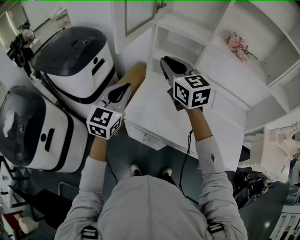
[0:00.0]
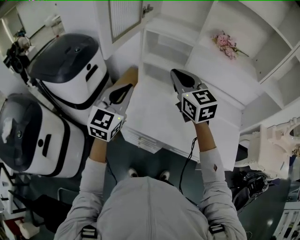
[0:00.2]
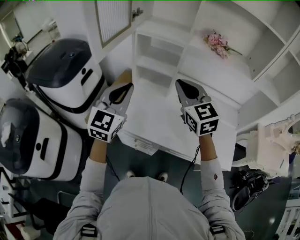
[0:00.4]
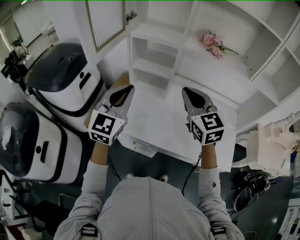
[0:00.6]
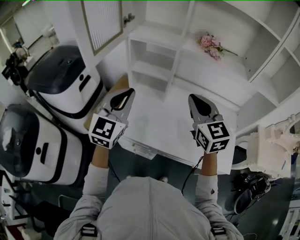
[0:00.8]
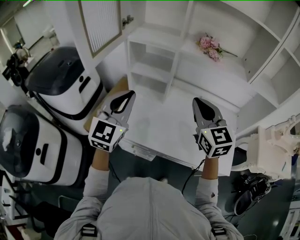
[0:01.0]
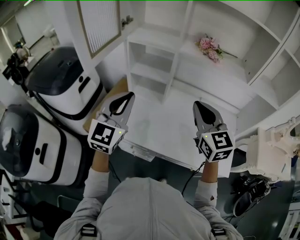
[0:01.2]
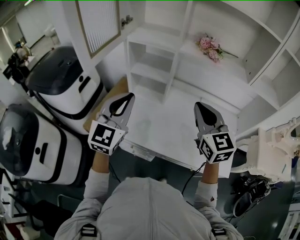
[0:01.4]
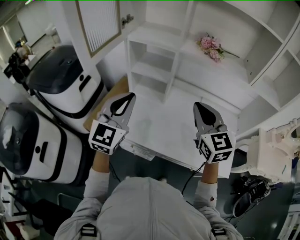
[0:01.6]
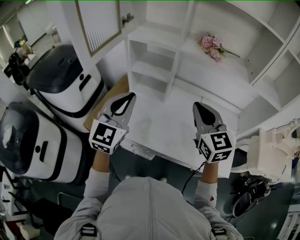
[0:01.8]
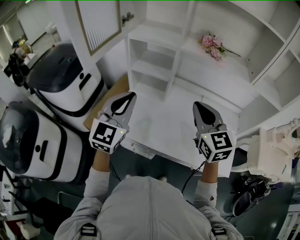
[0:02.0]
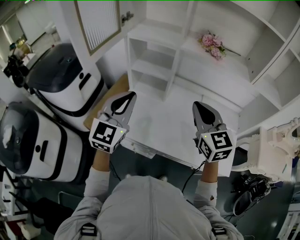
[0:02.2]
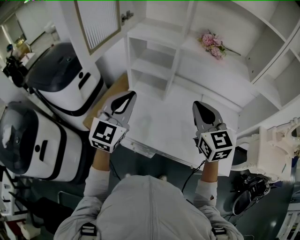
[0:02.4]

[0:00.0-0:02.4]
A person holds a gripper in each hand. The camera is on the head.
0:00.0 to 0:01.2: The left gripper shifts approximately 15 cm to the right and upward. The right gripper is displaced to the right by roughly 25 cm.
0:01.2 to 0:02.4: There are only small adjustments of the grippers.

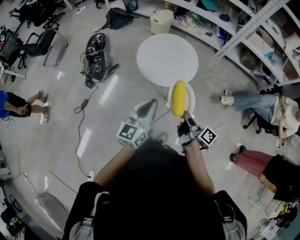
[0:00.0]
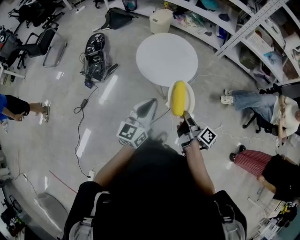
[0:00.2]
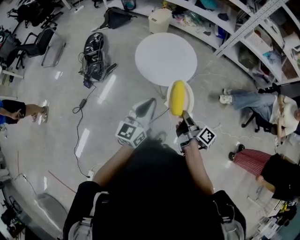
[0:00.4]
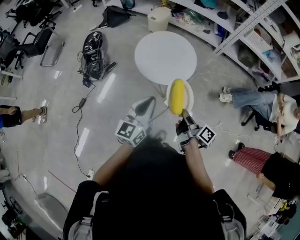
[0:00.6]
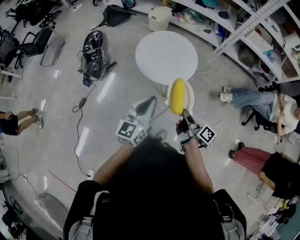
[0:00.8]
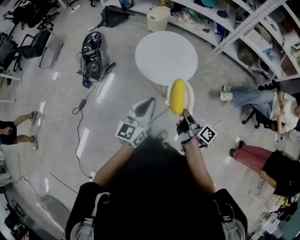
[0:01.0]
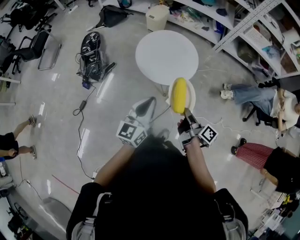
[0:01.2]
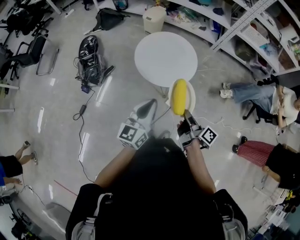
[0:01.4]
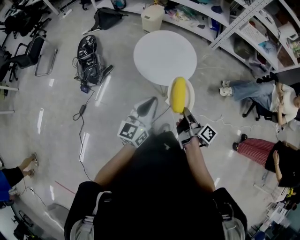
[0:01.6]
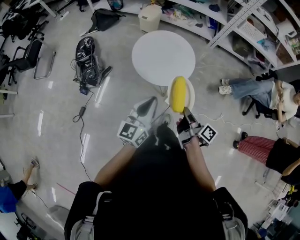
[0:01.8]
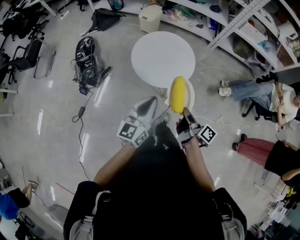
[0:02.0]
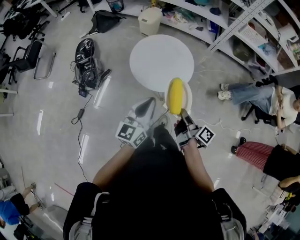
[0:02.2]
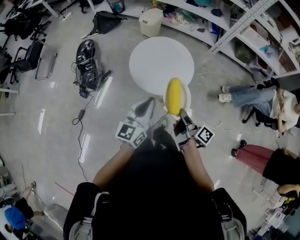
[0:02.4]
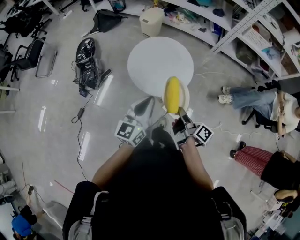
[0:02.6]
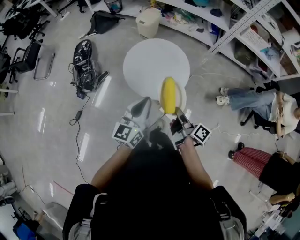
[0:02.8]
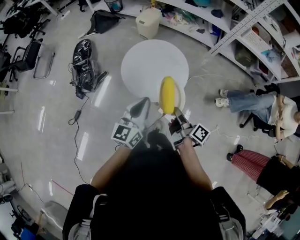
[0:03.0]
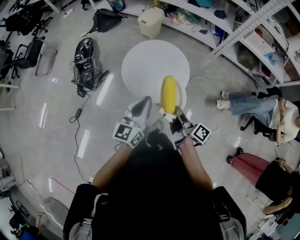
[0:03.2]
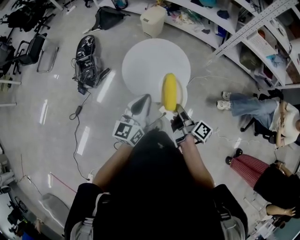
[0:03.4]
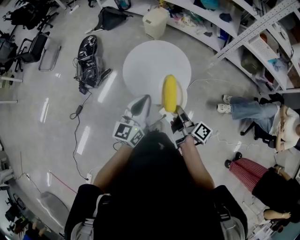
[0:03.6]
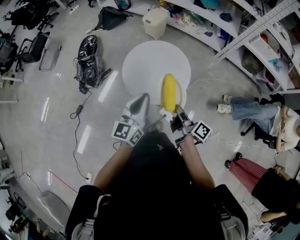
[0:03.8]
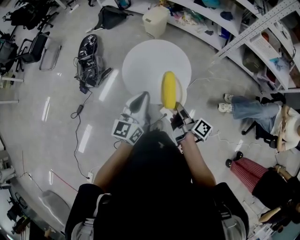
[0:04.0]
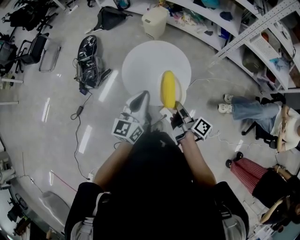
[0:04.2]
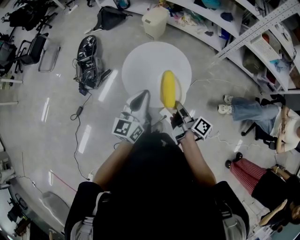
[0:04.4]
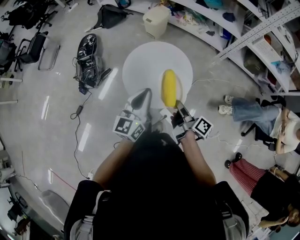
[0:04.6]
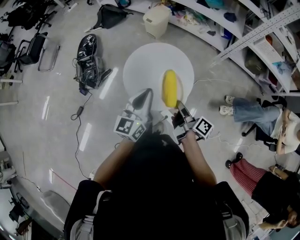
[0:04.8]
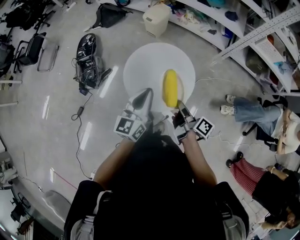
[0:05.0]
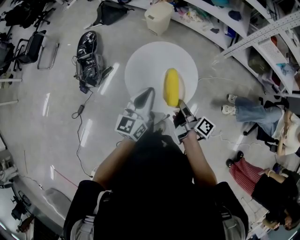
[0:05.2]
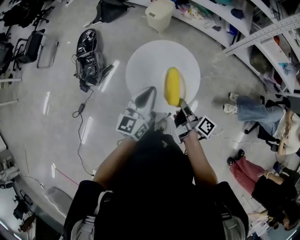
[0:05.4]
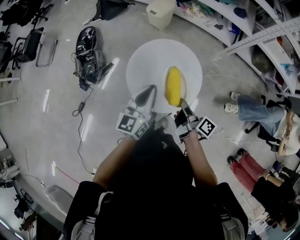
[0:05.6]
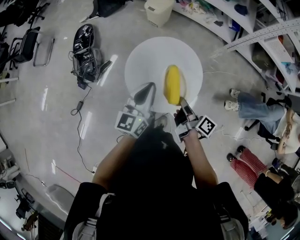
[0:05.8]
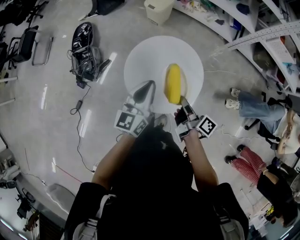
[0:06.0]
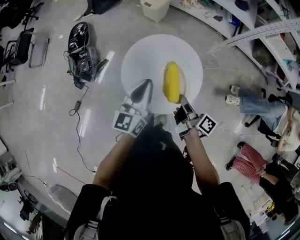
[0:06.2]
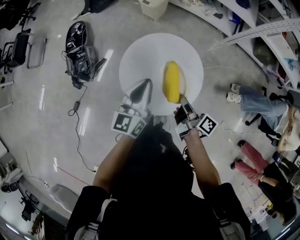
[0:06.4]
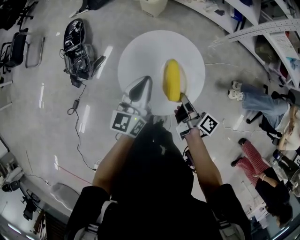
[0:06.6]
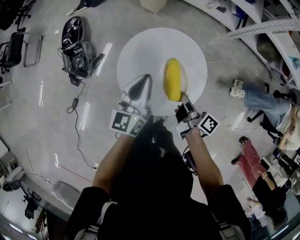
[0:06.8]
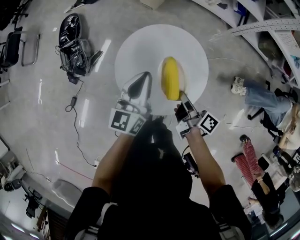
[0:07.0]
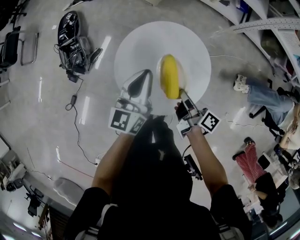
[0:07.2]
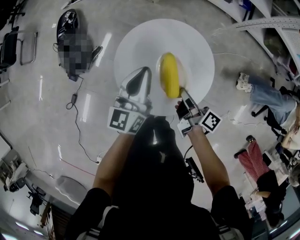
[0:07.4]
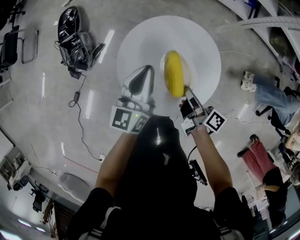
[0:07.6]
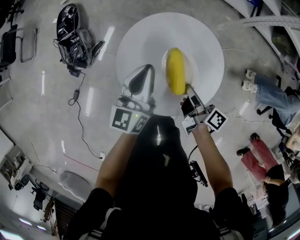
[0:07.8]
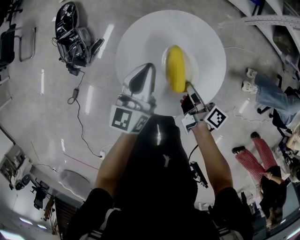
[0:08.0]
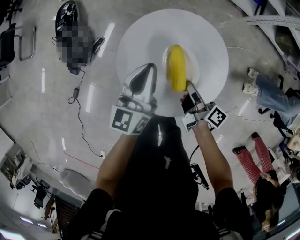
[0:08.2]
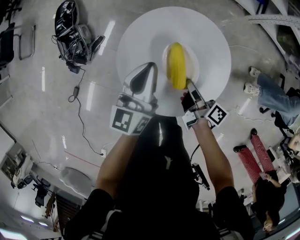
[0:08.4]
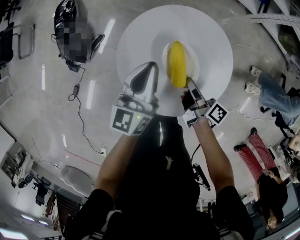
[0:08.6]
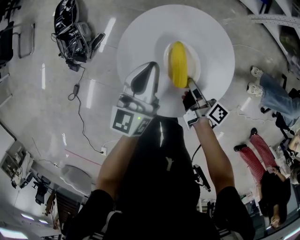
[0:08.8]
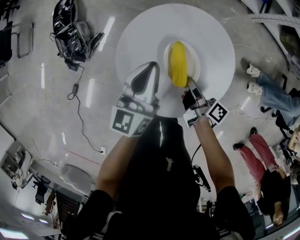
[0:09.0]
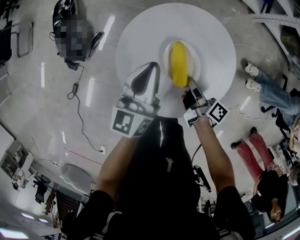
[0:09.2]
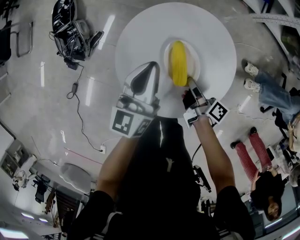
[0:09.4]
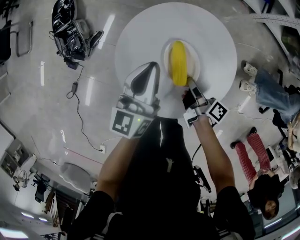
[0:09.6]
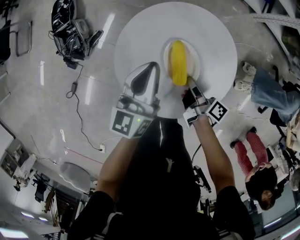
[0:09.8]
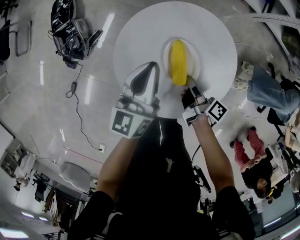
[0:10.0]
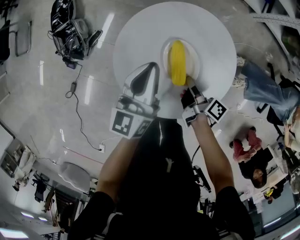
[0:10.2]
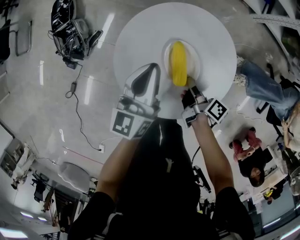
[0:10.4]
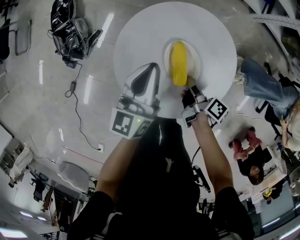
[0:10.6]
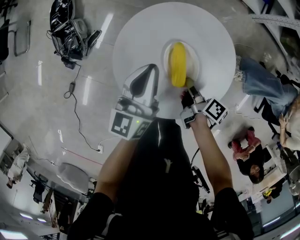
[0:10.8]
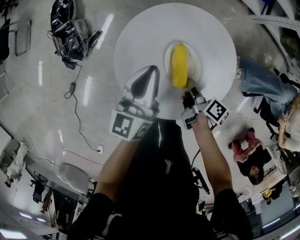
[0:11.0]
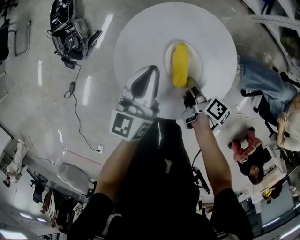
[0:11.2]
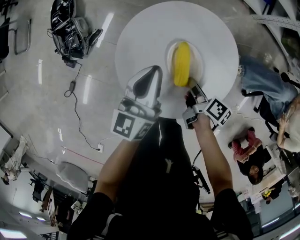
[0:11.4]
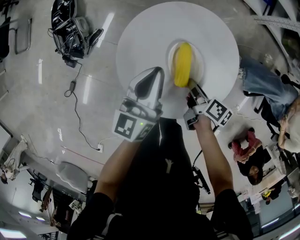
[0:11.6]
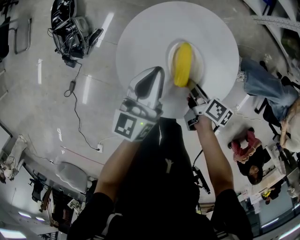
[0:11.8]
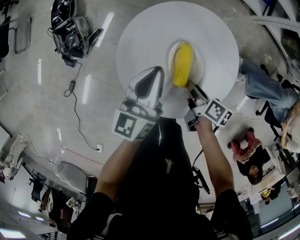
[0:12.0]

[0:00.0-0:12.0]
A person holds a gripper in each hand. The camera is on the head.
0:00.0 to 0:01.6: The left gripper shifts by roughly 5 cm.
0:01.6 to 0:03.0: The left gripper ends up approximately 15 cm from where it was.
0:03.0 to 0:04.4: The left gripper ends up some 10 cm from where it was.
0:04.4 to 0:06.0: The left gripper shifts by approximately 15 cm.
0:06.0 to 0:07.6: The left gripper is displaced downward by approximately 10 cm.

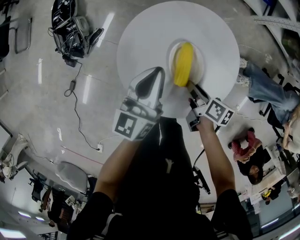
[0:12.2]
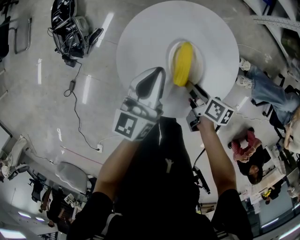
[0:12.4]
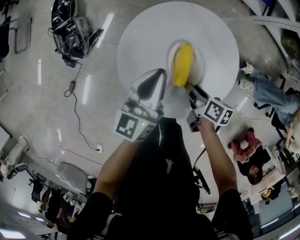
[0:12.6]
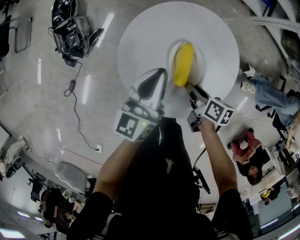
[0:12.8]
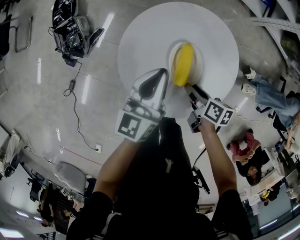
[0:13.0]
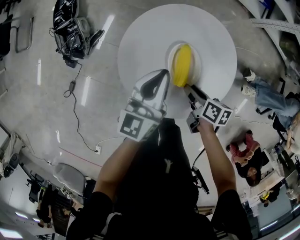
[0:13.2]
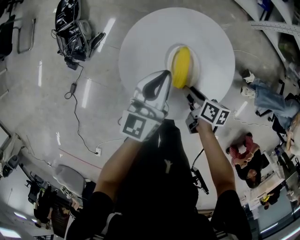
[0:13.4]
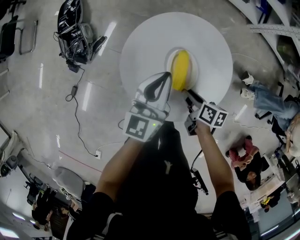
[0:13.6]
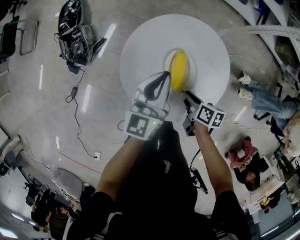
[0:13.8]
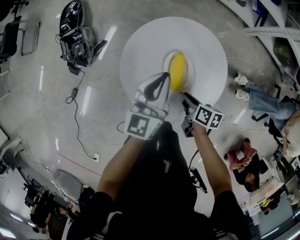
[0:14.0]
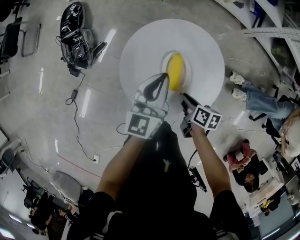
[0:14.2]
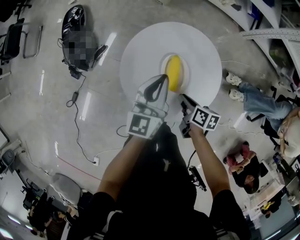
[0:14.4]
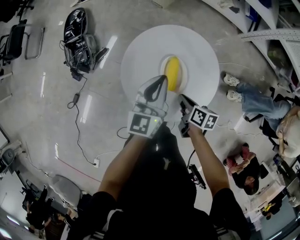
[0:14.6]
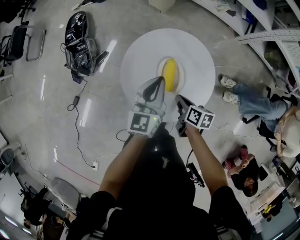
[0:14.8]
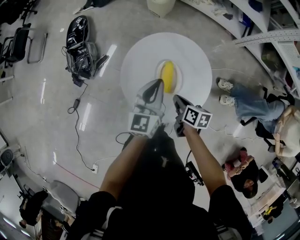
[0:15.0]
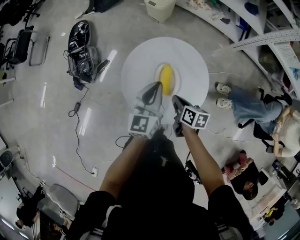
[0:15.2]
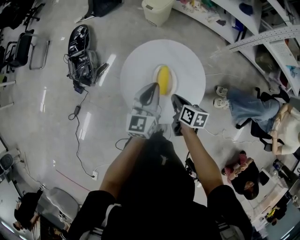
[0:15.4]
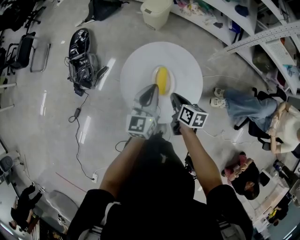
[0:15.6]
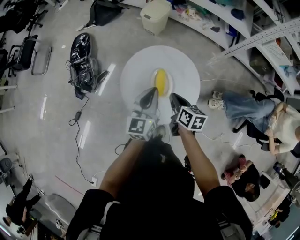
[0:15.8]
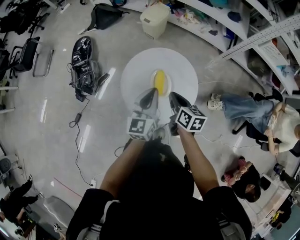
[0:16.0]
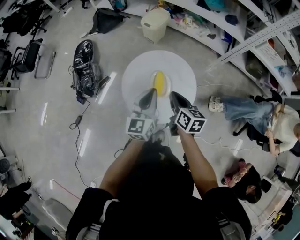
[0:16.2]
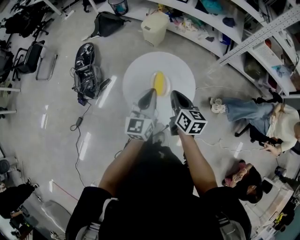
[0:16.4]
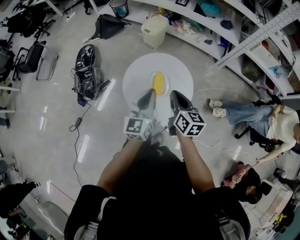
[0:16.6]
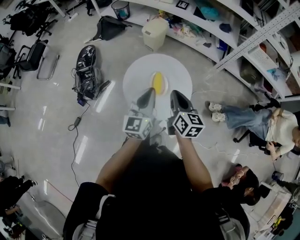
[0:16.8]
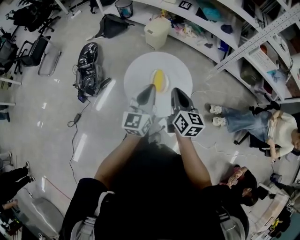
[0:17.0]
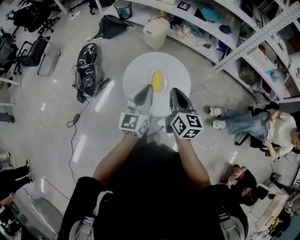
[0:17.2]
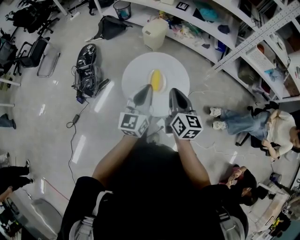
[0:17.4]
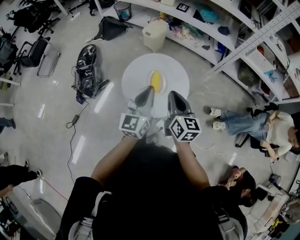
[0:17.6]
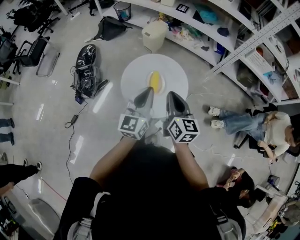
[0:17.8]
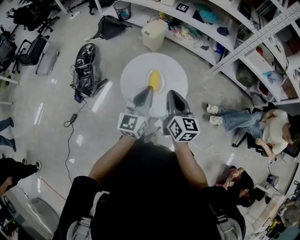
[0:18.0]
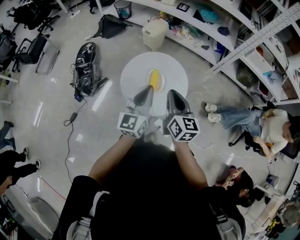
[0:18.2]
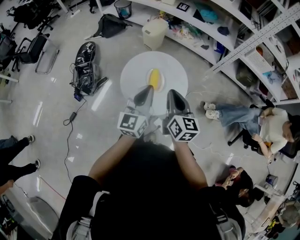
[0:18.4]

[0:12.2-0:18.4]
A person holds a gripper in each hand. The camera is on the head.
0:13.8 to 0:15.4: The left gripper moves upward, some 5 cm.
0:15.4 to 0:16.8: The left gripper goes approximately 15 cm upward.

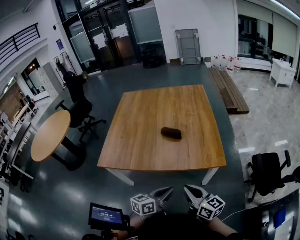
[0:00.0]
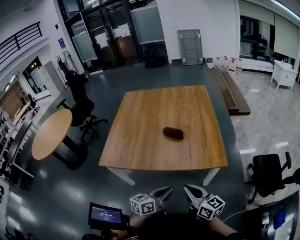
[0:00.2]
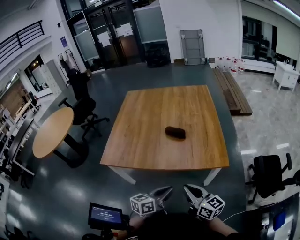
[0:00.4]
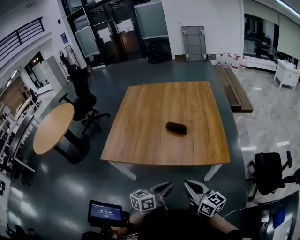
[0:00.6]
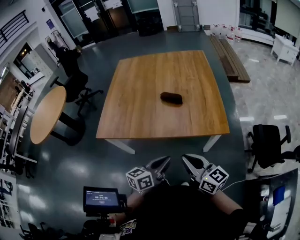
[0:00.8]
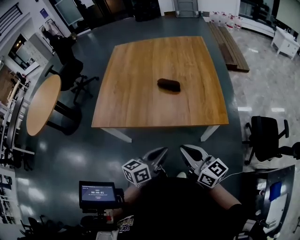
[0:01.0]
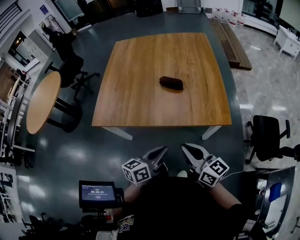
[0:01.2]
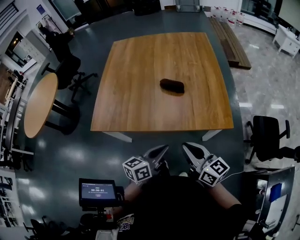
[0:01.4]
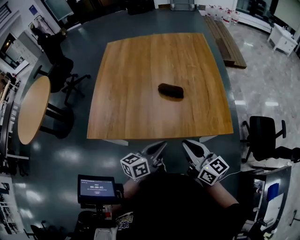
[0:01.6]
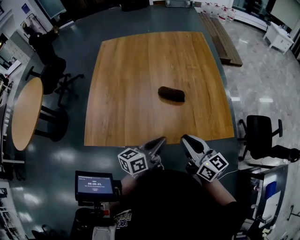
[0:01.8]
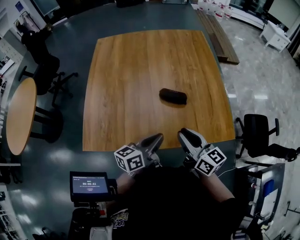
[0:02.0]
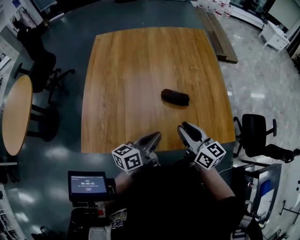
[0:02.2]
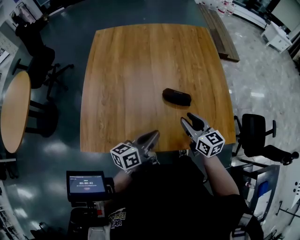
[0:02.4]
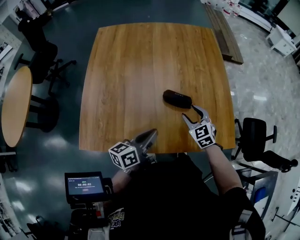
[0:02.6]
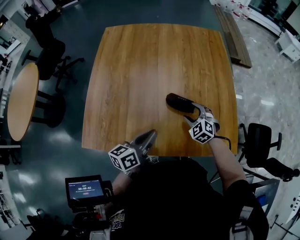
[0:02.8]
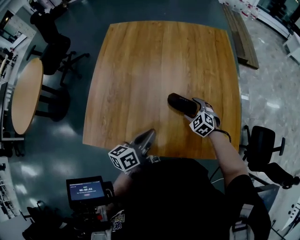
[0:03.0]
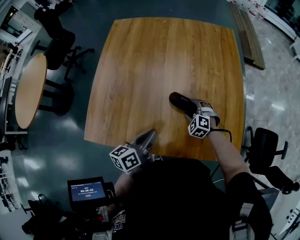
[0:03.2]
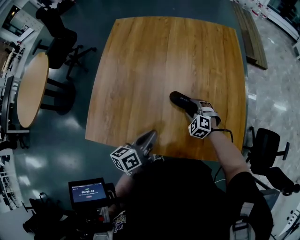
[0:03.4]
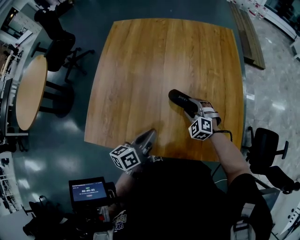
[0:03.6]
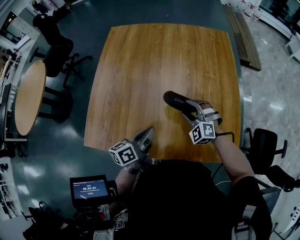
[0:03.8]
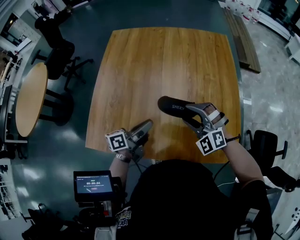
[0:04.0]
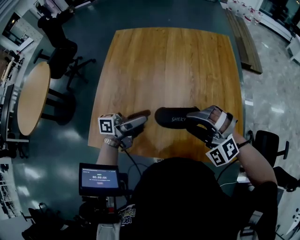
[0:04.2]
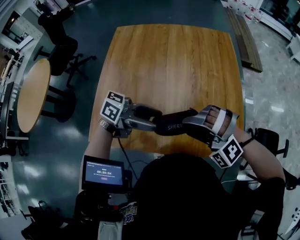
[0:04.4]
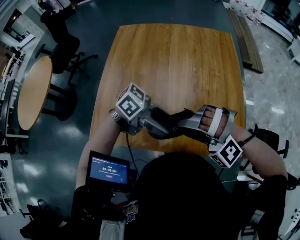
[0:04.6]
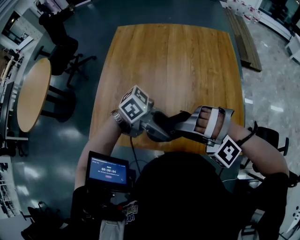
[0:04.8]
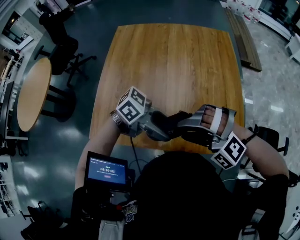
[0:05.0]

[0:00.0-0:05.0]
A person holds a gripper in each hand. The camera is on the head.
0:00.0 to 0:01.6: The left gripper travels forward and to the left by some 10 cm, while the right gripper goes roughly 10 cm forward.
0:01.6 to 0:03.4: The left gripper goes about 20 cm forward and to the left, and changes its angle by approximately 20 degrees. The right gripper travels forward and downward by about 40 cm, rotates around the line of its fingers by roughly 70 degrees, counterclockwise from behind, and opens its fingers.
0:03.4 to 0:05.0: The left gripper moves upward, about 10 cm, turns by approximately 80 degrees, and opens its fingers; the right gripper goes about 30 cm upward, and changes its angle by roughly 50 degrees.
